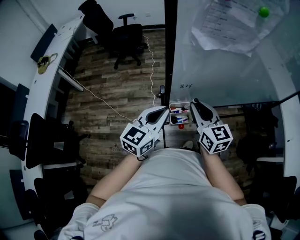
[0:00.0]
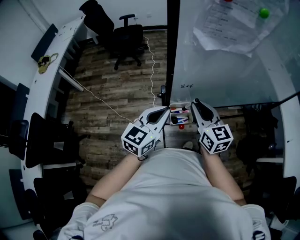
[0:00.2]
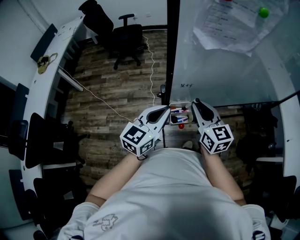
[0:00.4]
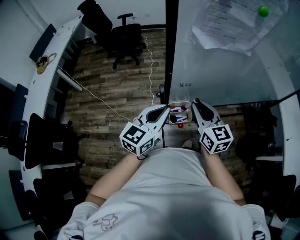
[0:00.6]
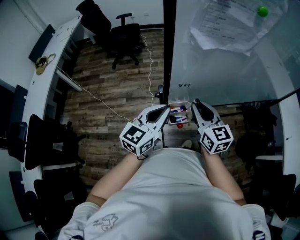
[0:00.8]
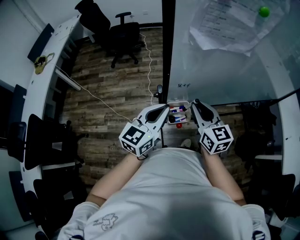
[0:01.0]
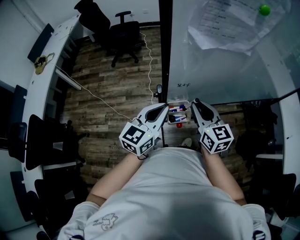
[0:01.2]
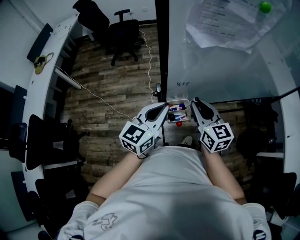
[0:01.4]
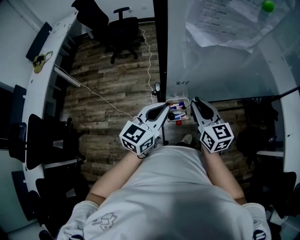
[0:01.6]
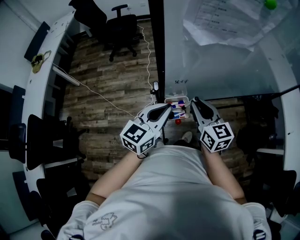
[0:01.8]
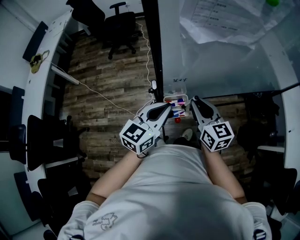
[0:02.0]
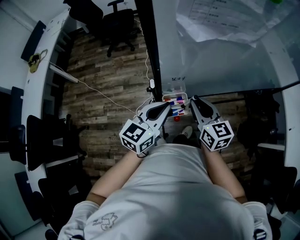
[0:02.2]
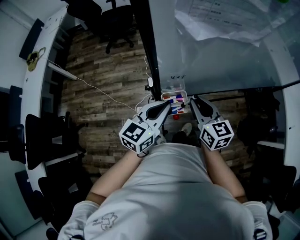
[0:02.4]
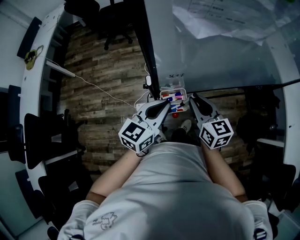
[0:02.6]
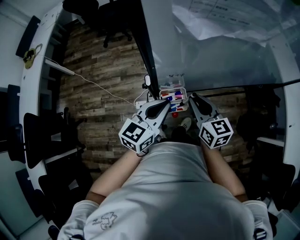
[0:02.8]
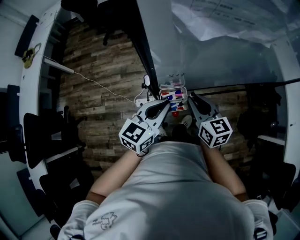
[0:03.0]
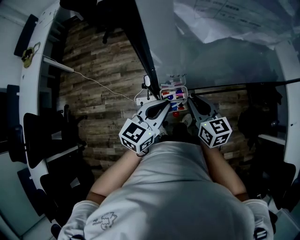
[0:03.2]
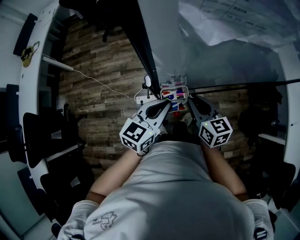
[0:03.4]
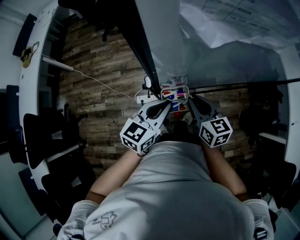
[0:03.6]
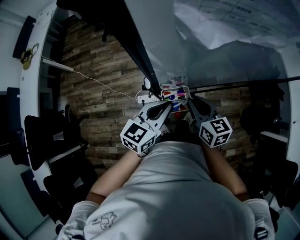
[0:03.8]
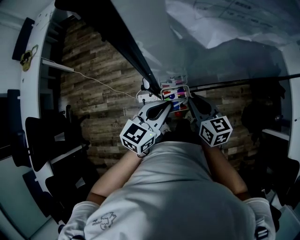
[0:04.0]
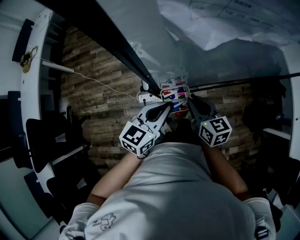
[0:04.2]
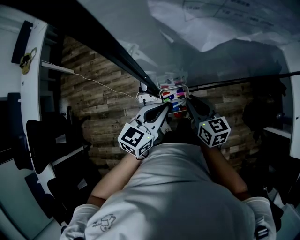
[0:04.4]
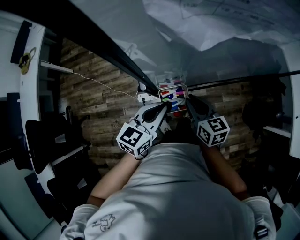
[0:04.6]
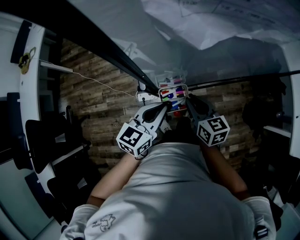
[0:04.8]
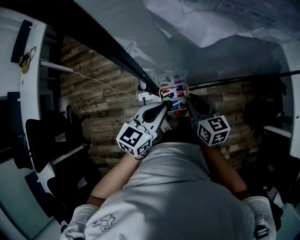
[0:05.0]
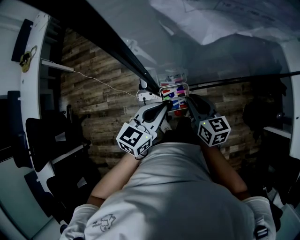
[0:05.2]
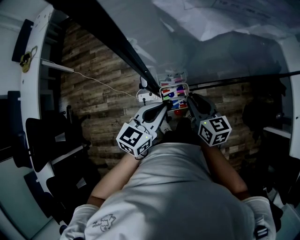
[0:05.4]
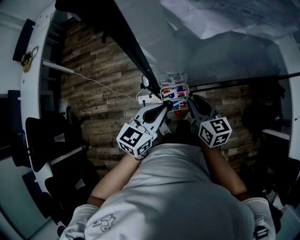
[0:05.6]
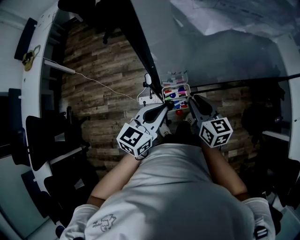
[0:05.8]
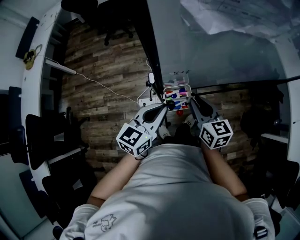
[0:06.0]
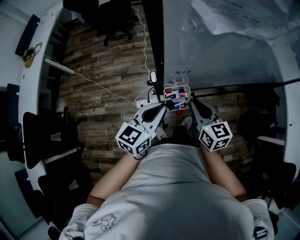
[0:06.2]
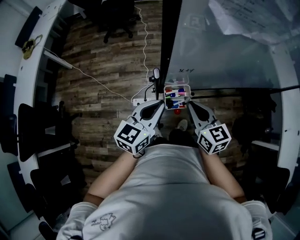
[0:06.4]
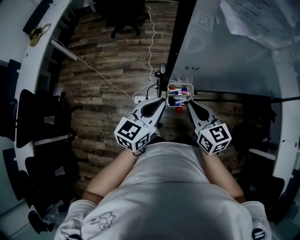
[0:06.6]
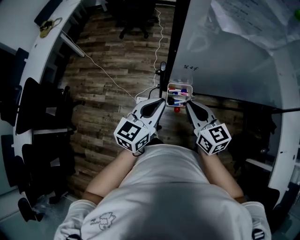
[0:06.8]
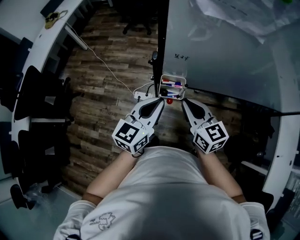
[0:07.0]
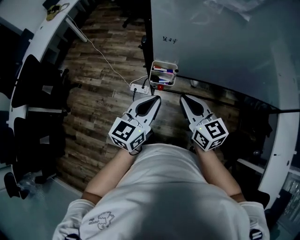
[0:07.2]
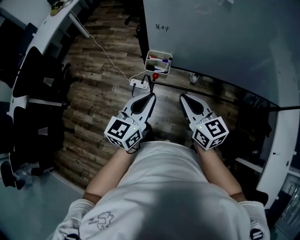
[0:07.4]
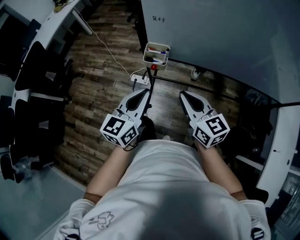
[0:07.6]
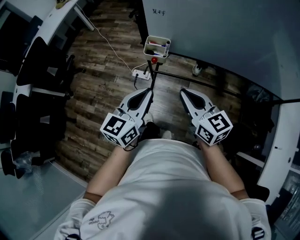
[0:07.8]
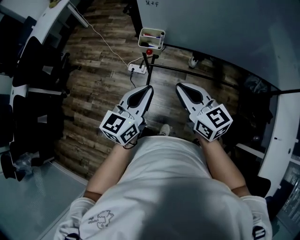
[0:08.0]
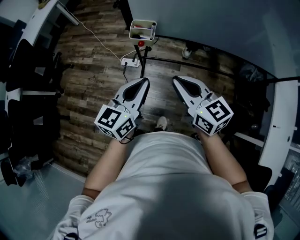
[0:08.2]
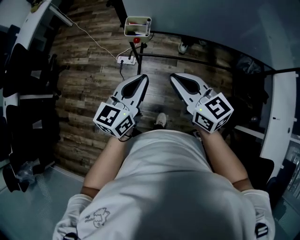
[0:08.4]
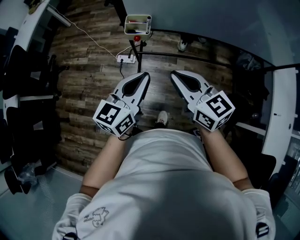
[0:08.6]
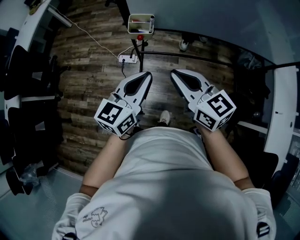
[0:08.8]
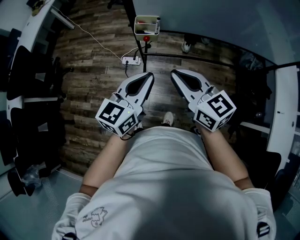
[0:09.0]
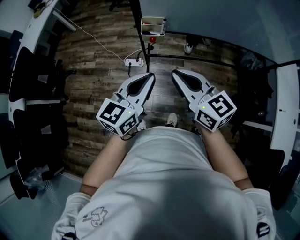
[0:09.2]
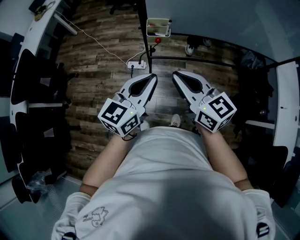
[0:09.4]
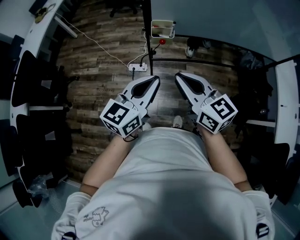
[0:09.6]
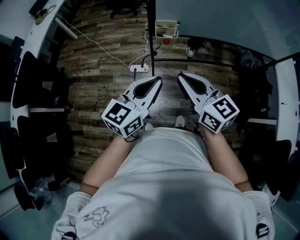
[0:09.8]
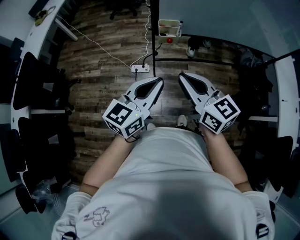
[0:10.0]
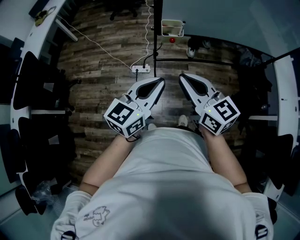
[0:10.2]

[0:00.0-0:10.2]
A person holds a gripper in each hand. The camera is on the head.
0:00.0 to 0:01.4: The grippers make only small movements.
0:01.4 to 0:03.0: Both grippers travel together downward, roughly 5 cm.
0:03.0 to 0:04.4: The right gripper travels downward by some 5 cm.
0:04.4 to 0:05.8: There are only small adjustments of the grippers.
0:05.8 to 0:07.2: The right gripper heads backward and upward, covering roughly 15 cm, and changes its angle by roughly 30 degrees. The left gripper shifts approximately 15 cm backward and to the right, and turns by some 20 degrees.
0:07.2 to 0:08.8: Both grippers move backward, some 15 cm.
0:08.8 to 0:10.2: Both grippers travel together to the left and backward, about 15 cm.

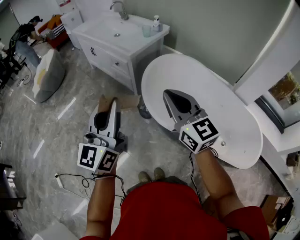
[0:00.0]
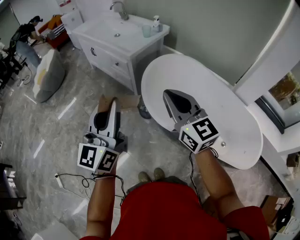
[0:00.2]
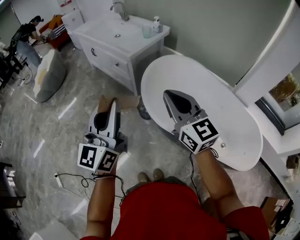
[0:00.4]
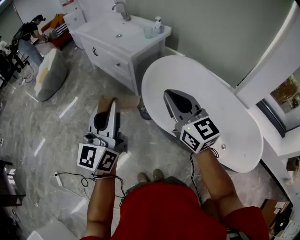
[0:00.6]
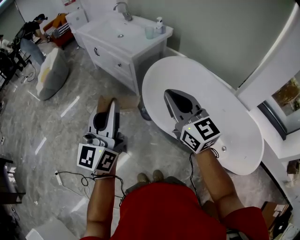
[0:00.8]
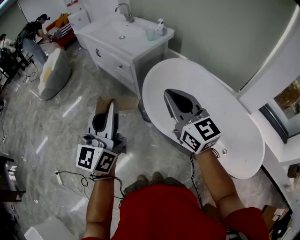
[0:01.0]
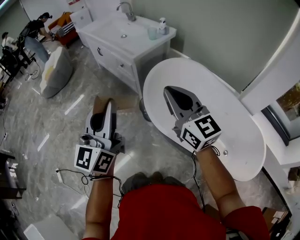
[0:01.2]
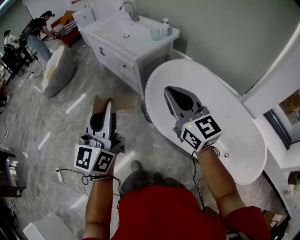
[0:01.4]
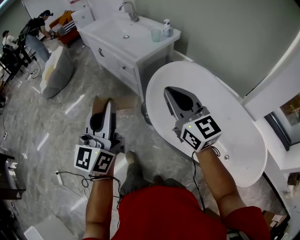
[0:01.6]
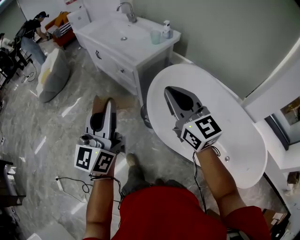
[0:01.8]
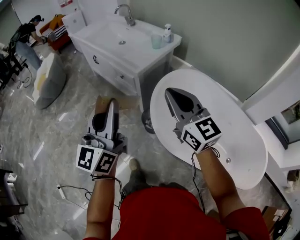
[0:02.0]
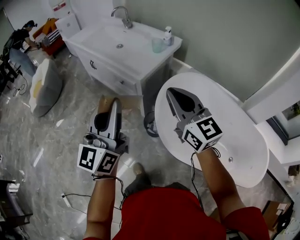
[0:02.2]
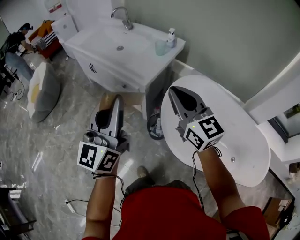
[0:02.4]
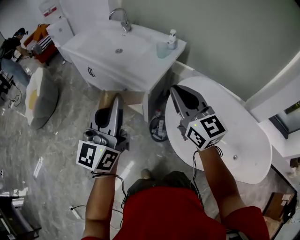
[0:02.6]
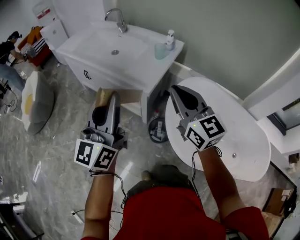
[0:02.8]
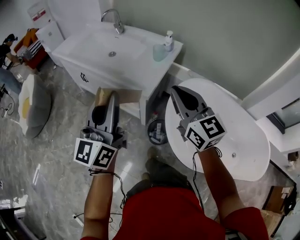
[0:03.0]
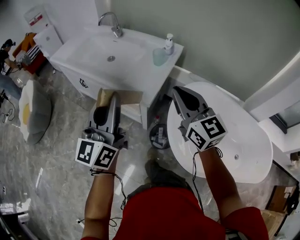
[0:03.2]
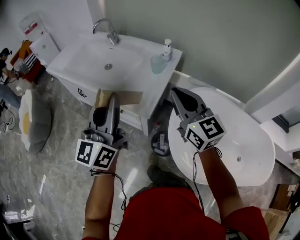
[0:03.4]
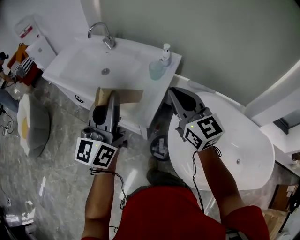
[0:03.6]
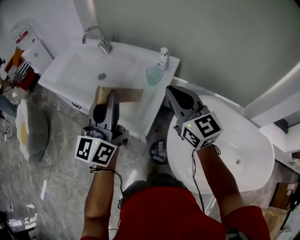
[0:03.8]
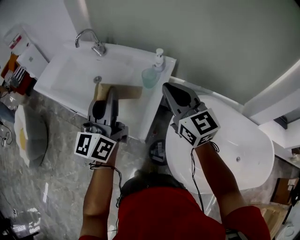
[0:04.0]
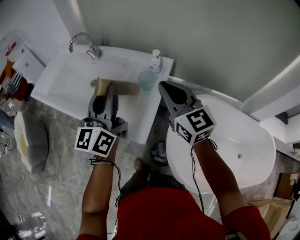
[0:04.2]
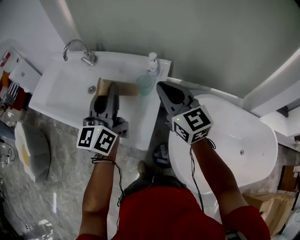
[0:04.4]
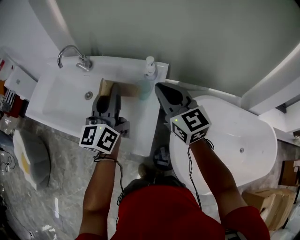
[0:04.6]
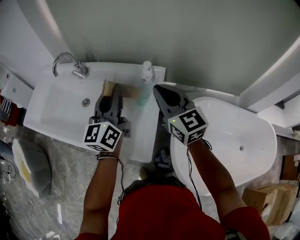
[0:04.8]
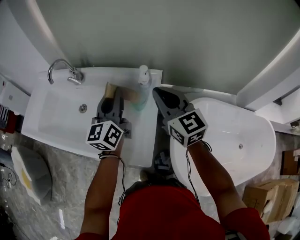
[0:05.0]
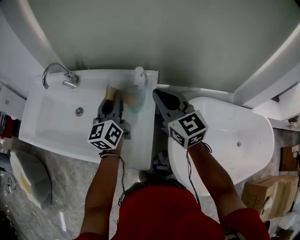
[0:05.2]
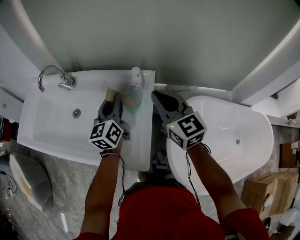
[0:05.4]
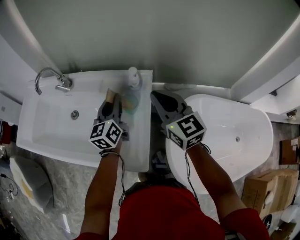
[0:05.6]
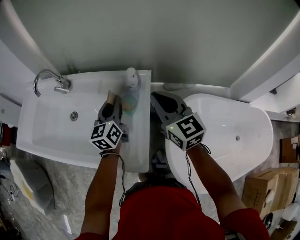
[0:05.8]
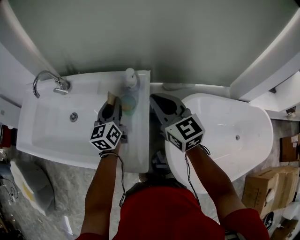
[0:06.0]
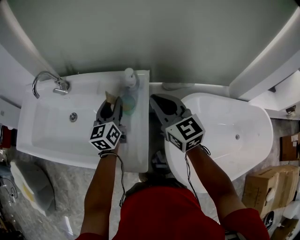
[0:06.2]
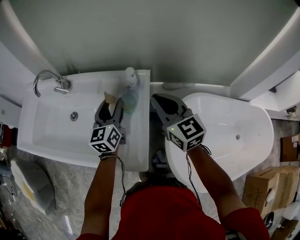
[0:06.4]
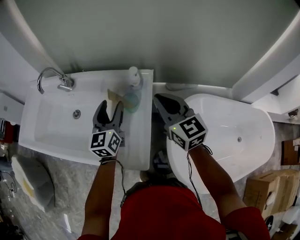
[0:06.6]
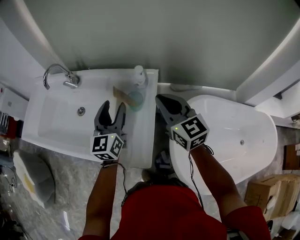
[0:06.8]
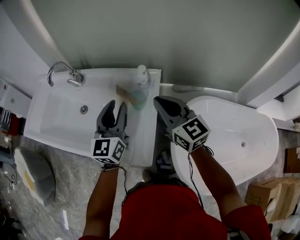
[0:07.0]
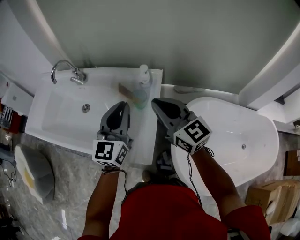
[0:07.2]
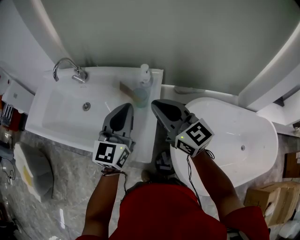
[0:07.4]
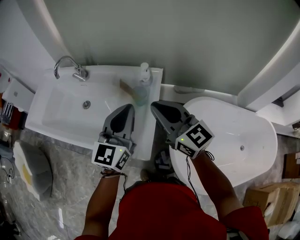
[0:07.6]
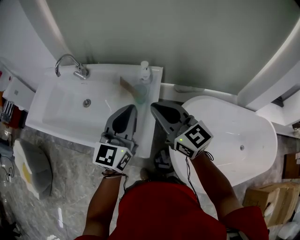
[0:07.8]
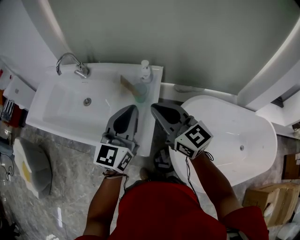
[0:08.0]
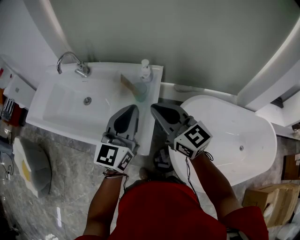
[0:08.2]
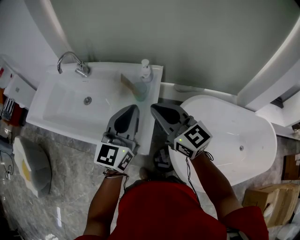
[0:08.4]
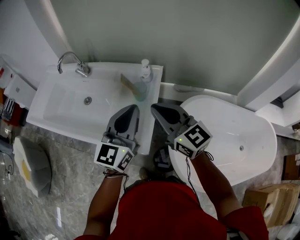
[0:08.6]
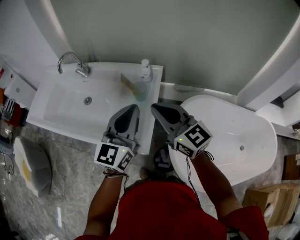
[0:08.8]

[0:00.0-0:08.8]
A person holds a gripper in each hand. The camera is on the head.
0:00.0 to 0:01.4: The right gripper changes place by approximately 5 cm.
0:01.4 to 0:03.0: The right gripper moves forward and to the left, some 35 cm; the left gripper moves forward, roughly 35 cm.
0:03.0 to 0:04.4: Both grippers move forward, roughly 30 cm.
0:04.4 to 0:05.8: The right gripper shifts roughly 5 cm forward; the left gripper heads downward and forward, covering roughly 20 cm, and turns by roughly 20 degrees.
0:05.8 to 0:07.4: The left gripper travels backward and upward by roughly 15 cm, changes its angle by approximately 20 degrees, and opens, then closes once more. Meanwhile the right gripper is displaced backward by roughly 10 cm.
0:07.4 to 0:08.8: The left gripper travels backward by about 5 cm.

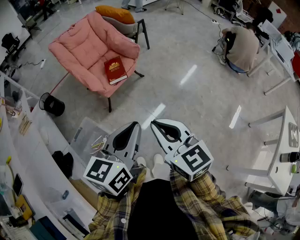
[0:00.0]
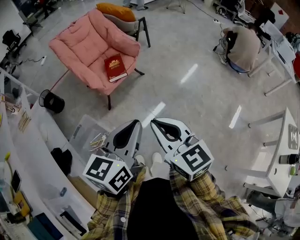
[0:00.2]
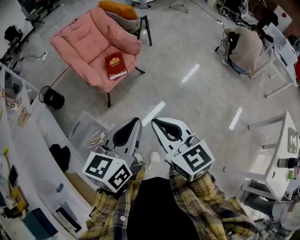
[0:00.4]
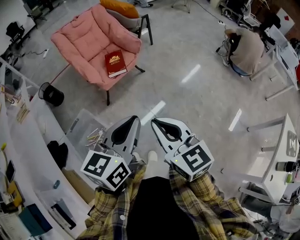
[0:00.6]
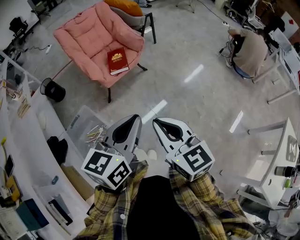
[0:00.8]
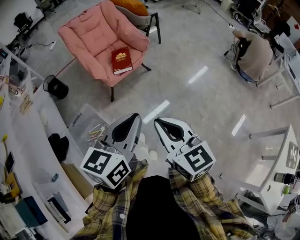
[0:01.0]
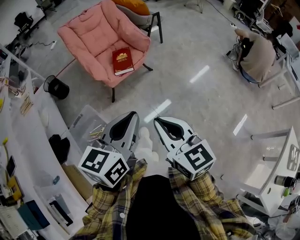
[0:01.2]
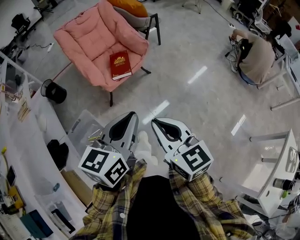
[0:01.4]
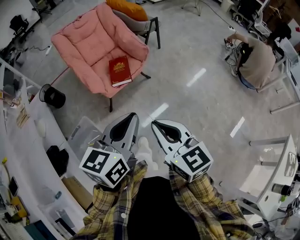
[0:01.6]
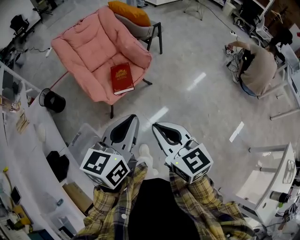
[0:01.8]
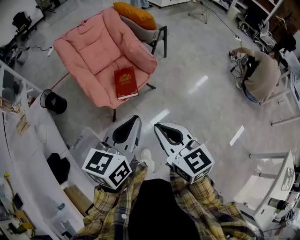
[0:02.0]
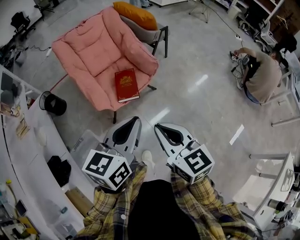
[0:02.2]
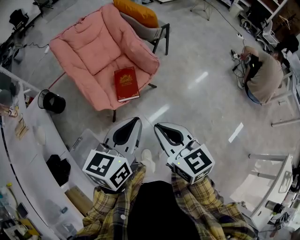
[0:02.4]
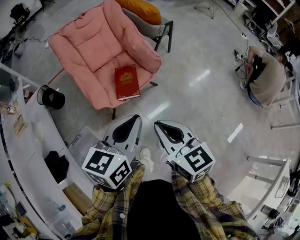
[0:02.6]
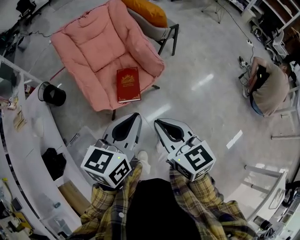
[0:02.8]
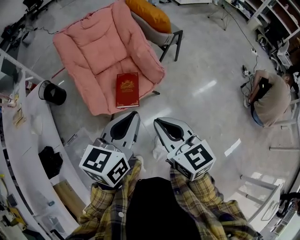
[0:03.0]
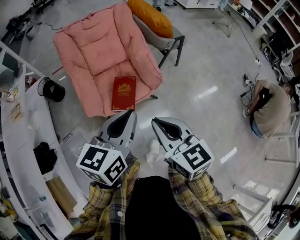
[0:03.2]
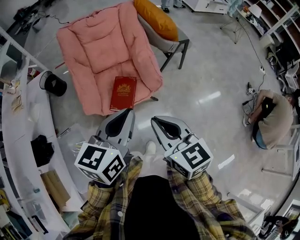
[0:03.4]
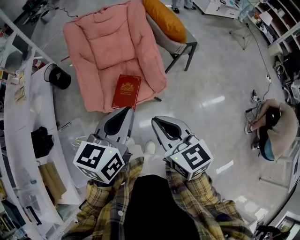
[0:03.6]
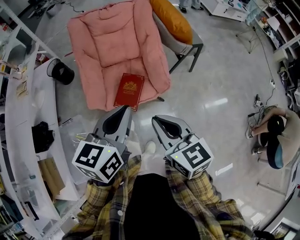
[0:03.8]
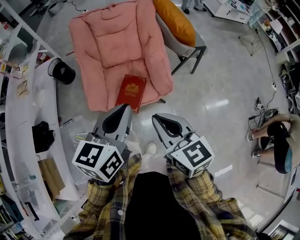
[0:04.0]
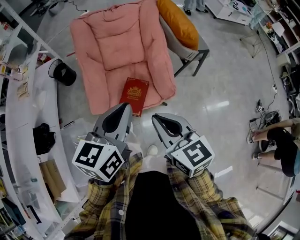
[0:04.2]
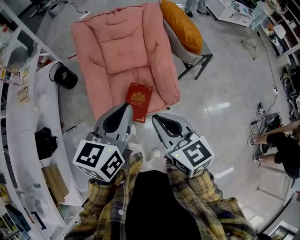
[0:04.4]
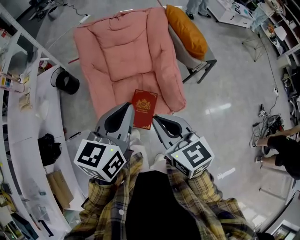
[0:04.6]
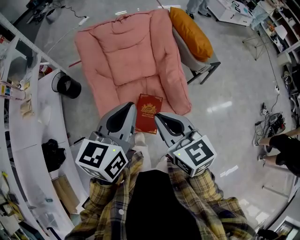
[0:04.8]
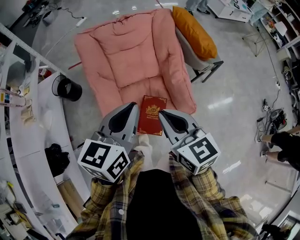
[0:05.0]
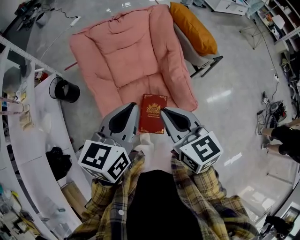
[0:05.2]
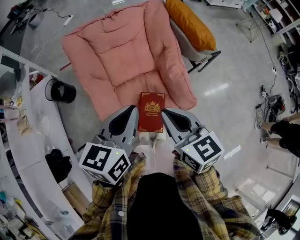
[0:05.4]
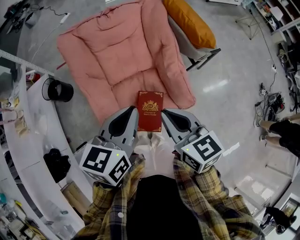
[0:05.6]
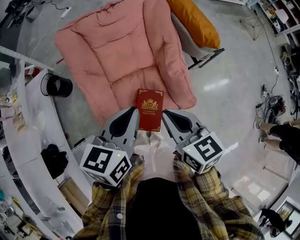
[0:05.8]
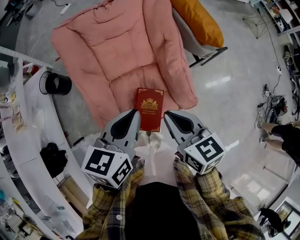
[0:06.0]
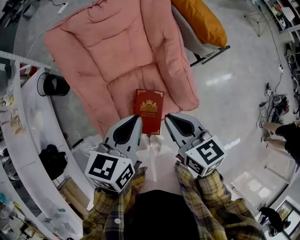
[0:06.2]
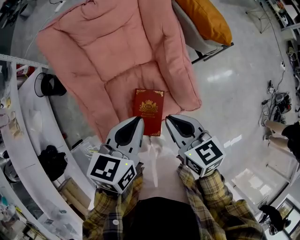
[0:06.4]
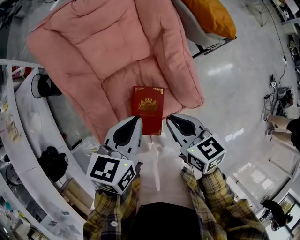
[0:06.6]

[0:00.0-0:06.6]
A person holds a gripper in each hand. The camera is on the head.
0:00.0 to 0:01.6: Both grippers travel together forward, approximately 15 cm.
0:01.6 to 0:03.2: Both grippers travel together forward, approximately 35 cm.
0:03.2 to 0:05.0: The two grippers go some 30 cm forward.
0:05.0 to 0:06.6: The two grippers go approximately 20 cm downward. The right gripper swivels approximately 20 degrees.
